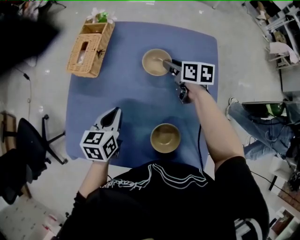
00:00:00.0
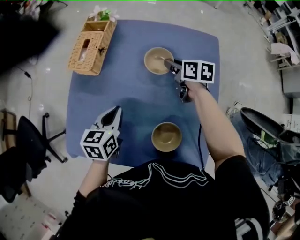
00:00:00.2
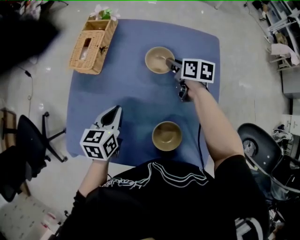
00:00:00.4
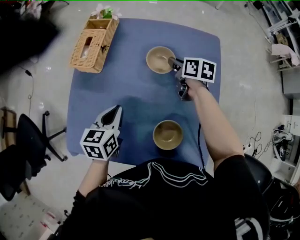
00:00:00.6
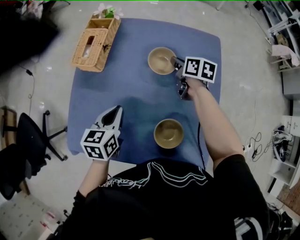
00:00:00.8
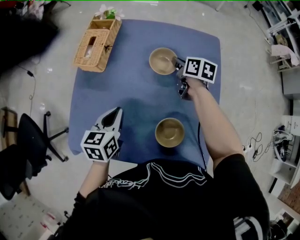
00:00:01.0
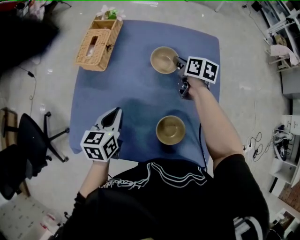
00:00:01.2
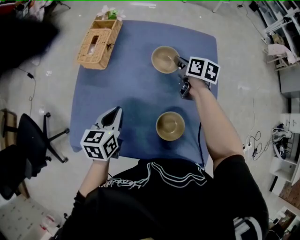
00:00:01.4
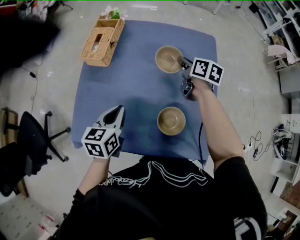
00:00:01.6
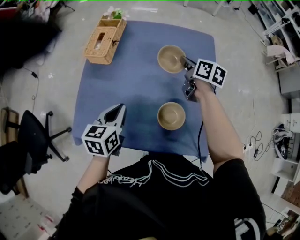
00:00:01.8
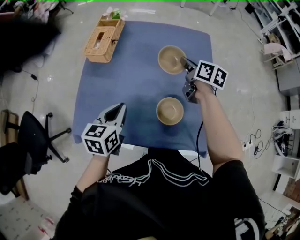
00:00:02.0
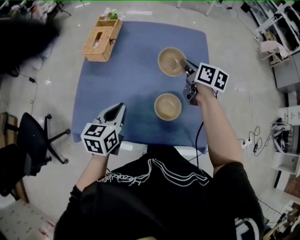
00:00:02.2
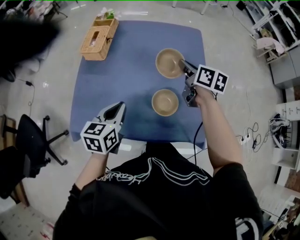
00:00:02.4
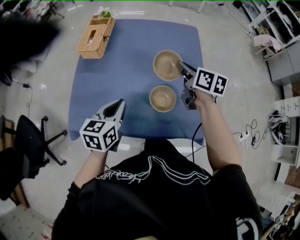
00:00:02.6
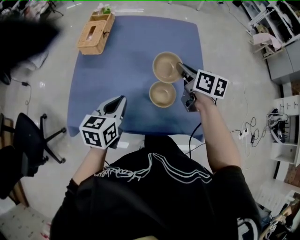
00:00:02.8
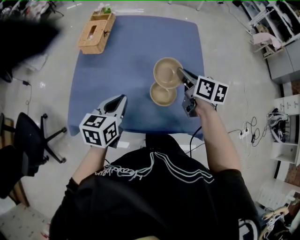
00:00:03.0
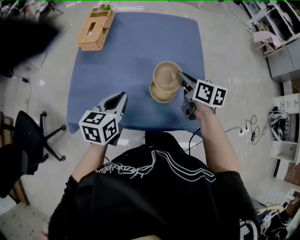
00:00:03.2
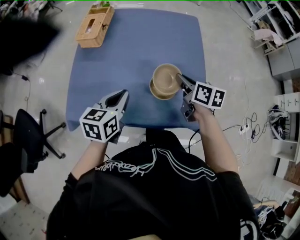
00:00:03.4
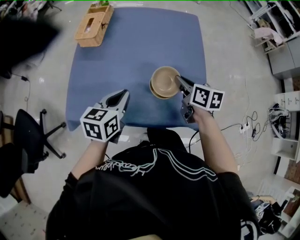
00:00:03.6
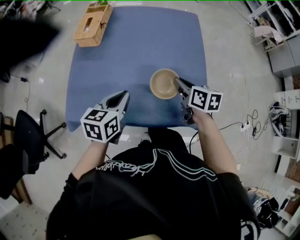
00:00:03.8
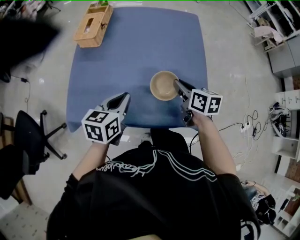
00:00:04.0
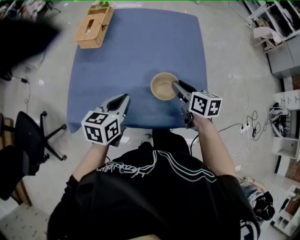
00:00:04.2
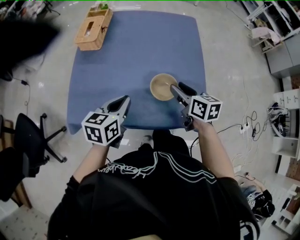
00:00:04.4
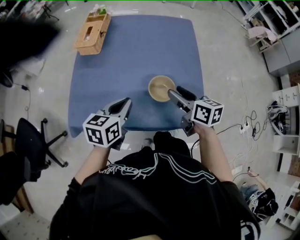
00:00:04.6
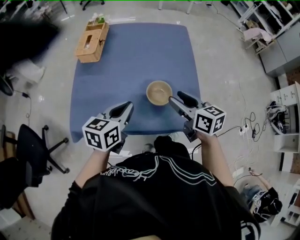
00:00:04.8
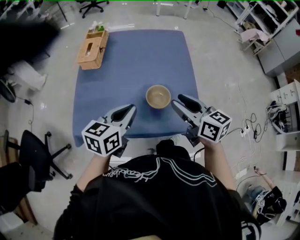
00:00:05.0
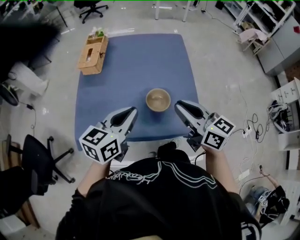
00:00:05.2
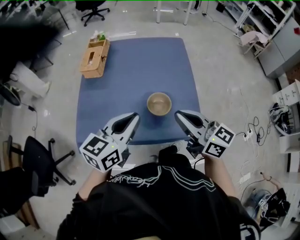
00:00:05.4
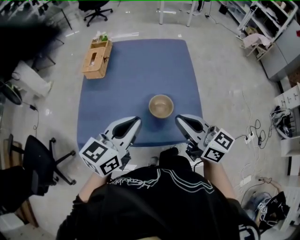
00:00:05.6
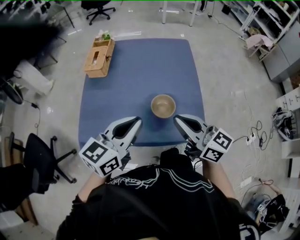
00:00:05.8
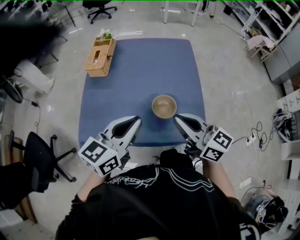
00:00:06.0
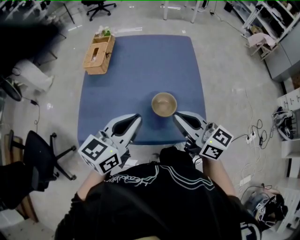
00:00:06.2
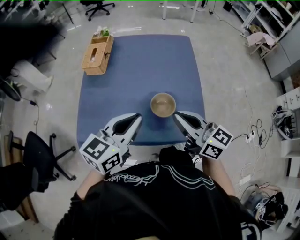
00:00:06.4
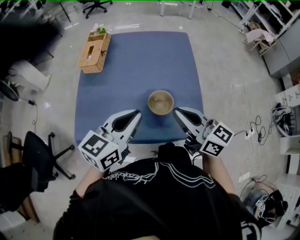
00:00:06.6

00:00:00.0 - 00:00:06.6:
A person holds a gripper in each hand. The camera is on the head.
00:00:00.0 - 00:00:01.6: The left gripper heads backward, covering about 5 cm; the right gripper changes place by about 5 cm, and closes.
00:00:01.6 - 00:00:03.2: The left gripper goes roughly 5 cm backward. The right gripper goes some 20 cm backward.
00:00:03.2 - 00:00:05.0: The left gripper shifts some 5 cm upward. Meanwhile the right gripper is displaced backward and upward by roughly 15 cm, changes its angle by about 20 degrees, and opens its fingers.
00:00:05.0 - 00:00:06.6: The right gripper closes; the left gripper travels upward by roughly 5 cm.

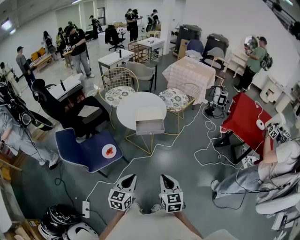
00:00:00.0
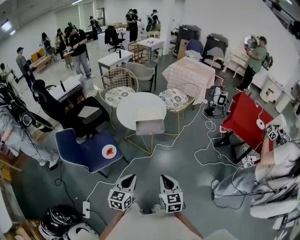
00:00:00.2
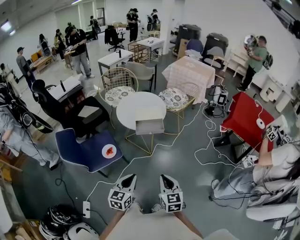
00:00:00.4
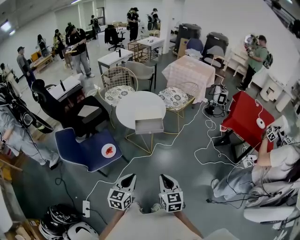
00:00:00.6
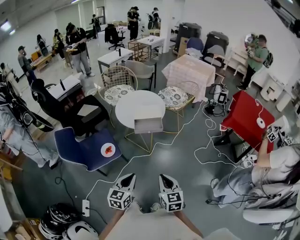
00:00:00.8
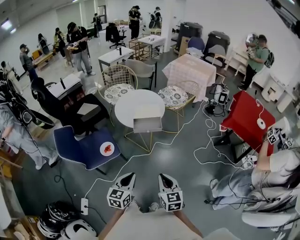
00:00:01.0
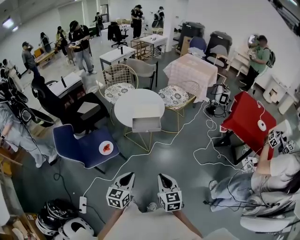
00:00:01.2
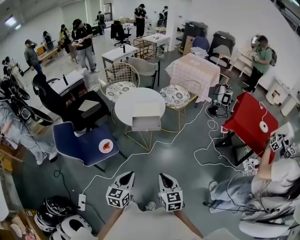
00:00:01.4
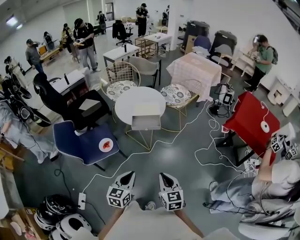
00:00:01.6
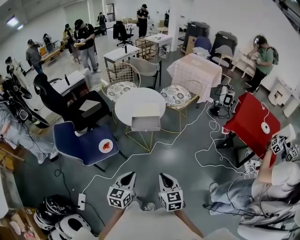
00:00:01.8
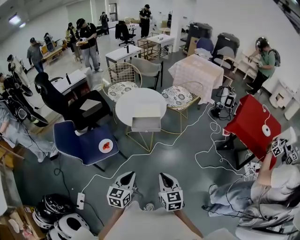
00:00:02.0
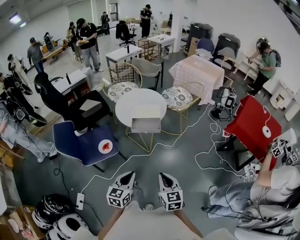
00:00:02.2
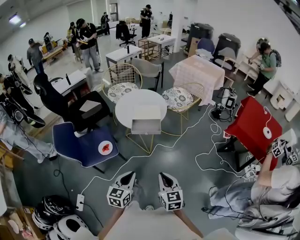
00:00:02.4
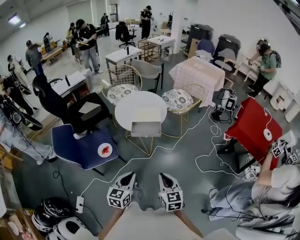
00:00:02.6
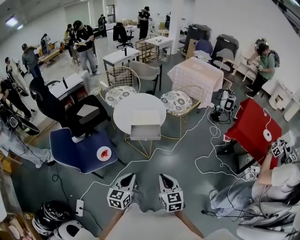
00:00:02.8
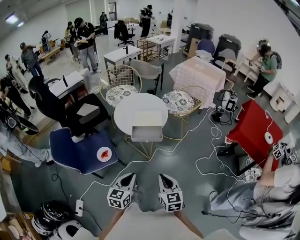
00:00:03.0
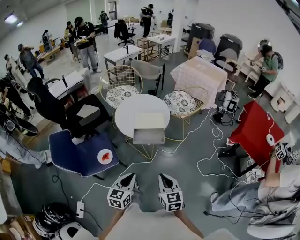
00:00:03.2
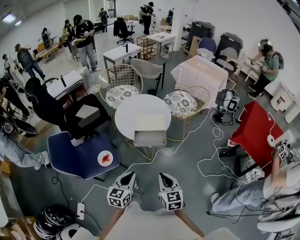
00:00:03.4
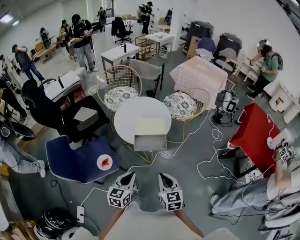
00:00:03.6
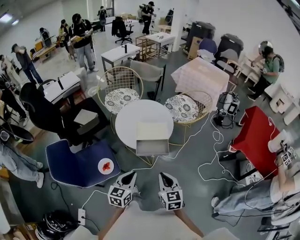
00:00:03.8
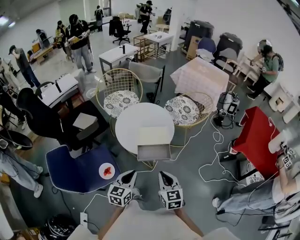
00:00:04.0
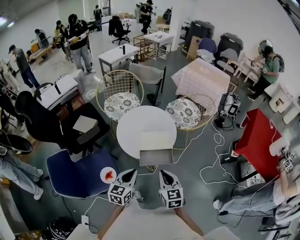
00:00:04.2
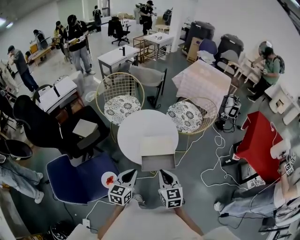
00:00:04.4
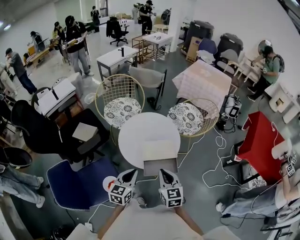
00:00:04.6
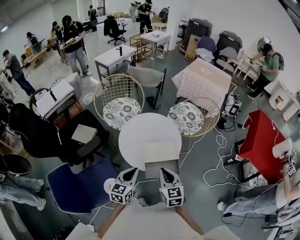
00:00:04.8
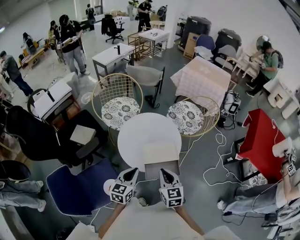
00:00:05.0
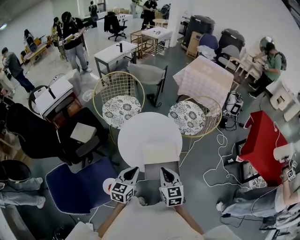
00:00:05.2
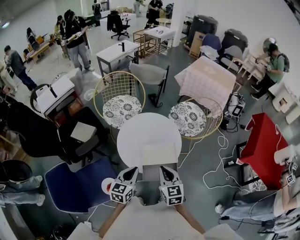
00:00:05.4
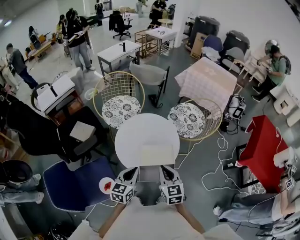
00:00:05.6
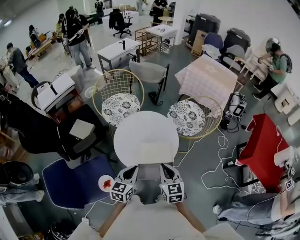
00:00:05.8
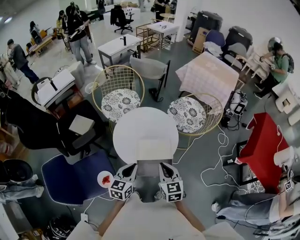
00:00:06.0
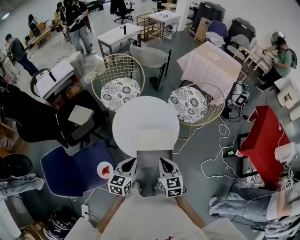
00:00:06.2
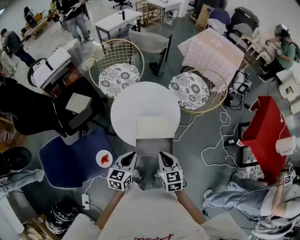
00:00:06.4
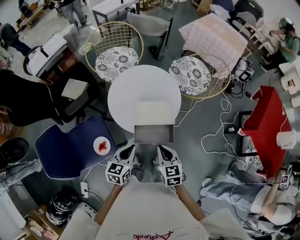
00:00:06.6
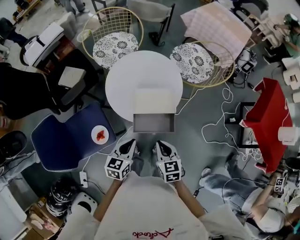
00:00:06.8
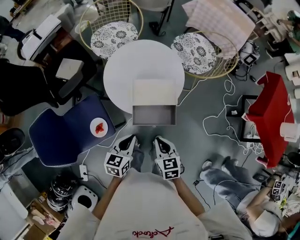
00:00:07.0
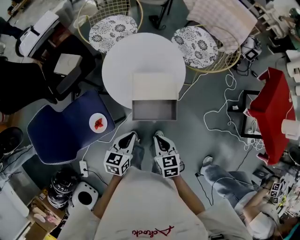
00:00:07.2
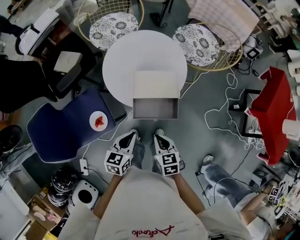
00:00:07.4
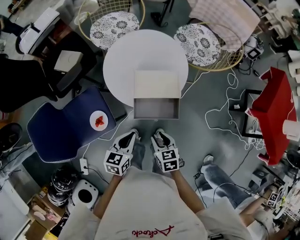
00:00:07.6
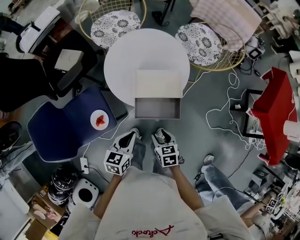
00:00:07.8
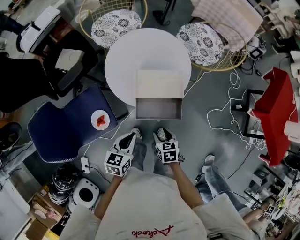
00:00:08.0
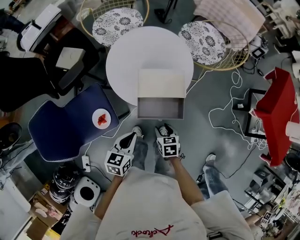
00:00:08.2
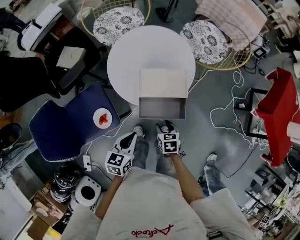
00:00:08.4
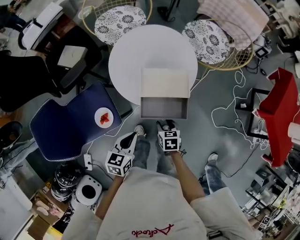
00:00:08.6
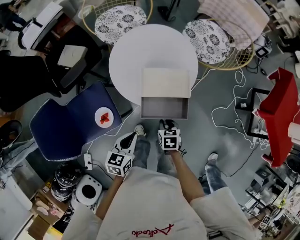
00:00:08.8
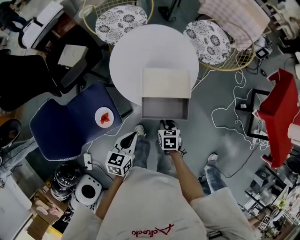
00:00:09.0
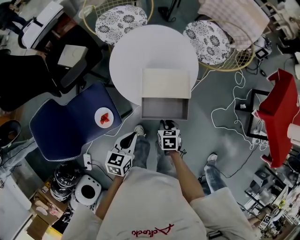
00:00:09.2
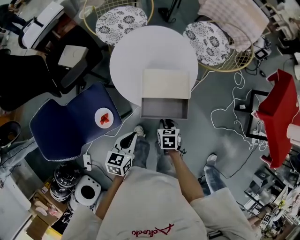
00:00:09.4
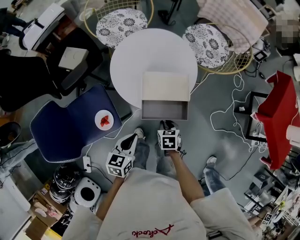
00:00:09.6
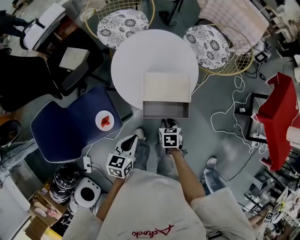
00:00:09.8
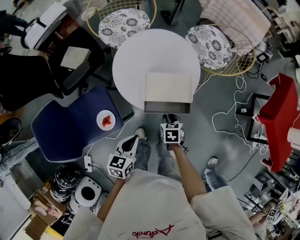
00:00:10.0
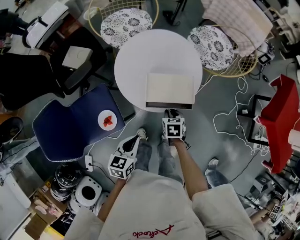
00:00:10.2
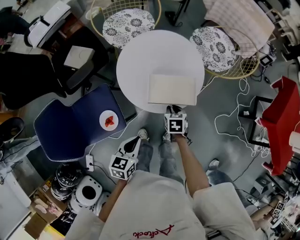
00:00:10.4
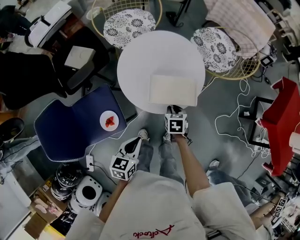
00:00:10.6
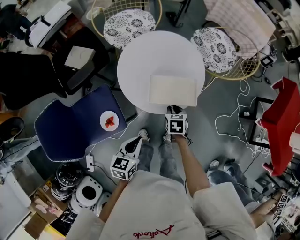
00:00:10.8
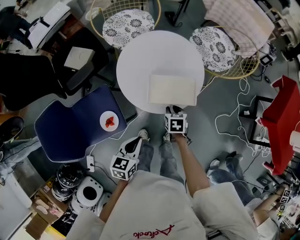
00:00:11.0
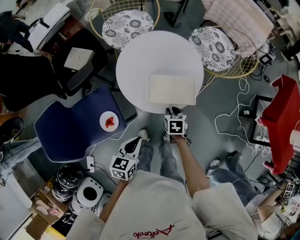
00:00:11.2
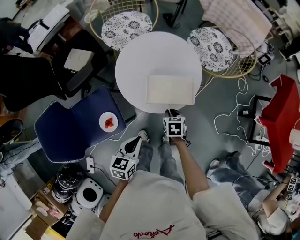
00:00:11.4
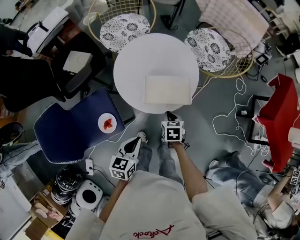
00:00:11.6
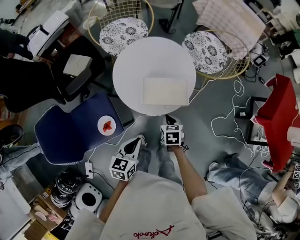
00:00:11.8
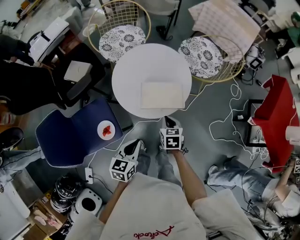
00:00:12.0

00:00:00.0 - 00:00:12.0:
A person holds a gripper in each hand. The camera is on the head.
00:00:00.0 - 00:00:01.6: Both grippers move to the right, approximately 5 cm.
00:00:01.6 - 00:00:03.0: The two grippers go approximately 10 cm forward.
00:00:03.0 - 00:00:04.4: The two grippers go about 30 cm forward and to the left.
00:00:04.4 - 00:00:06.0: Both grippers travel together forward, some 10 cm.
00:00:06.0 - 00:00:07.6: Both grippers travel together downward and backward, about 20 cm. The right gripper turns by approximately 30 degrees, and opens.
00:00:07.6 - 00:00:09.0: The right gripper heads downward and forward, covering about 10 cm.
00:00:09.0 - 00:00:10.4: The right gripper is displaced forward by approximately 10 cm.
00:00:10.4 - 00:00:12.0: The right gripper moves upward, some 5 cm.

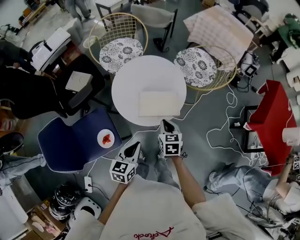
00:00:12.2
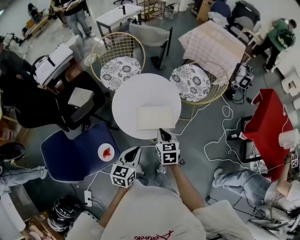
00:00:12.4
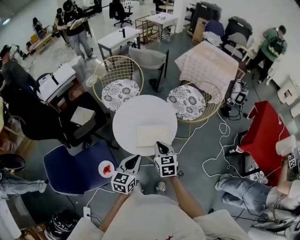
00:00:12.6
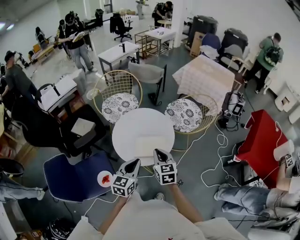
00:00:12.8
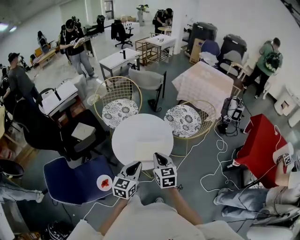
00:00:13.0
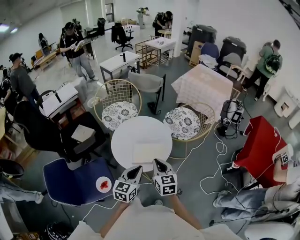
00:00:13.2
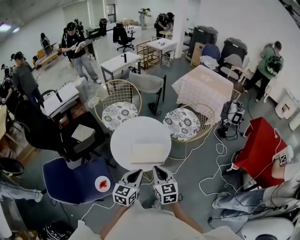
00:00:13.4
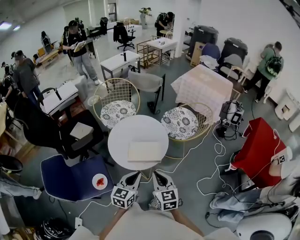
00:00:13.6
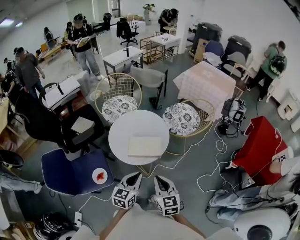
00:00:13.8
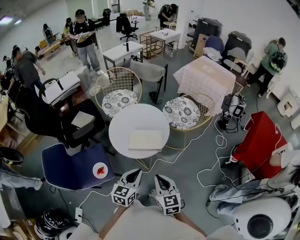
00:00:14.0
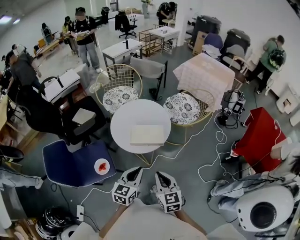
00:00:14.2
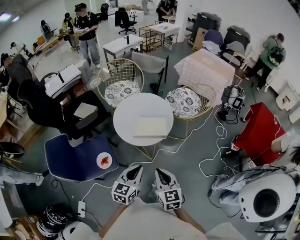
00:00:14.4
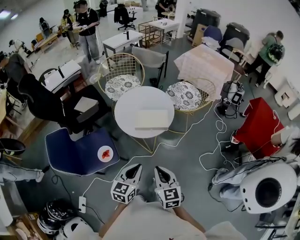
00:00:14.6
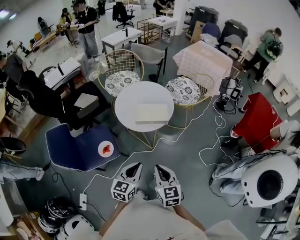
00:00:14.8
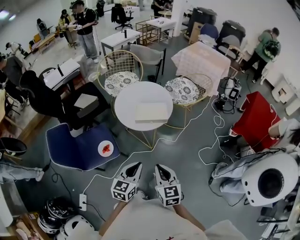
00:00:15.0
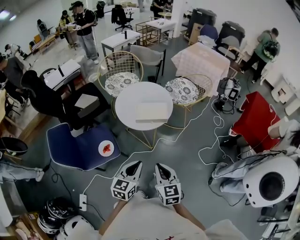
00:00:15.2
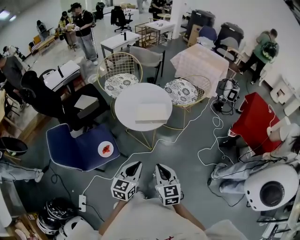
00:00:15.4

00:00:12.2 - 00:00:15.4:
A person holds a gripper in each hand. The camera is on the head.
00:00:12.2 - 00:00:13.8: The left gripper shifts some 15 cm to the right and upward, while the right gripper moves upward, backward and to the right, some 20 cm, and changes its angle by roughly 20 degrees.
00:00:13.8 - 00:00:15.4: Both grippers travel together backward, roughly 20 cm.

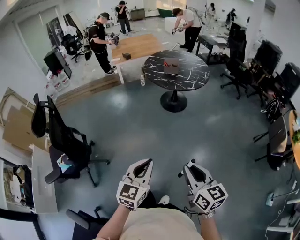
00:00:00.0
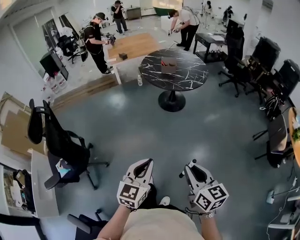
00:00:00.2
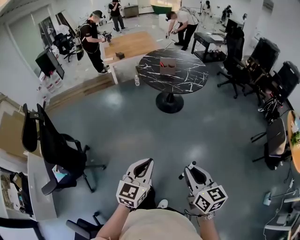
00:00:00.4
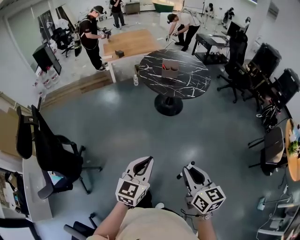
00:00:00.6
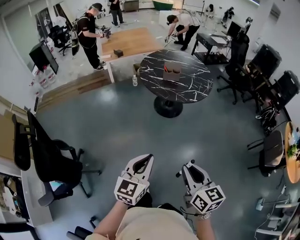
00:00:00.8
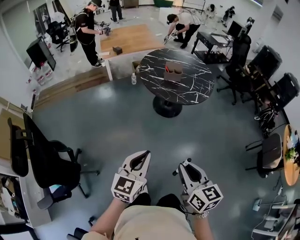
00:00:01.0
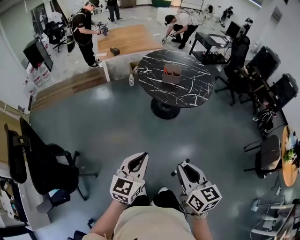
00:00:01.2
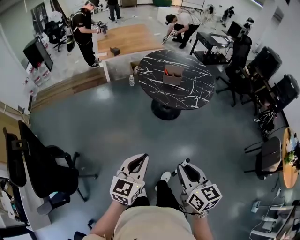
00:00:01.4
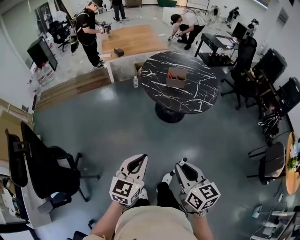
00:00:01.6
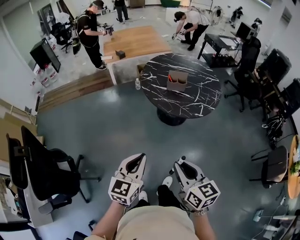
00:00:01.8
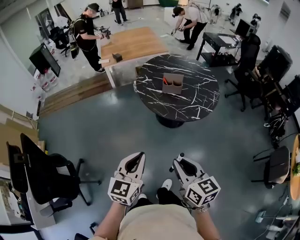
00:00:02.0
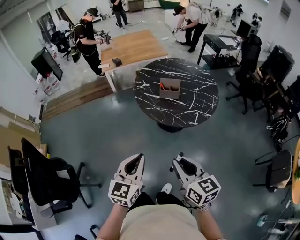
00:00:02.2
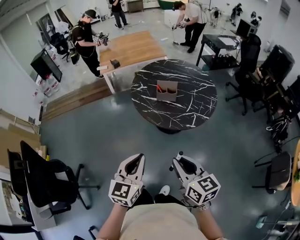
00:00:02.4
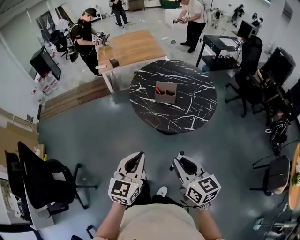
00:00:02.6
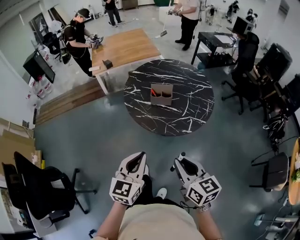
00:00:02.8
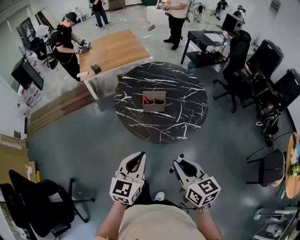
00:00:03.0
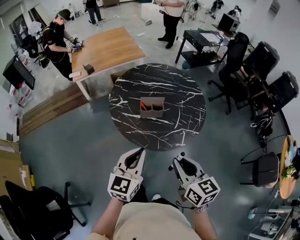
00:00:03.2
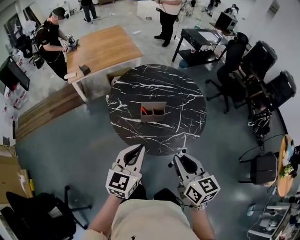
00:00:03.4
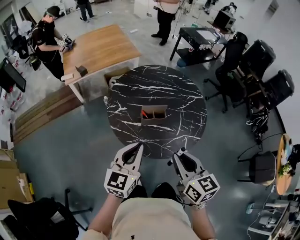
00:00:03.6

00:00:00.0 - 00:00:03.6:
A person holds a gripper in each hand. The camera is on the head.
00:00:00.0 - 00:00:01.8: The two grippers travel together, forward, roughly 40 cm.
00:00:01.8 - 00:00:03.6: The pair of grippers is taken forward, some 40 cm.
